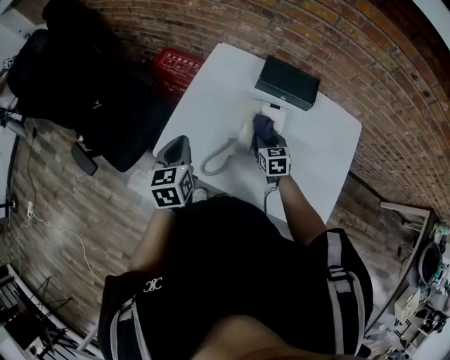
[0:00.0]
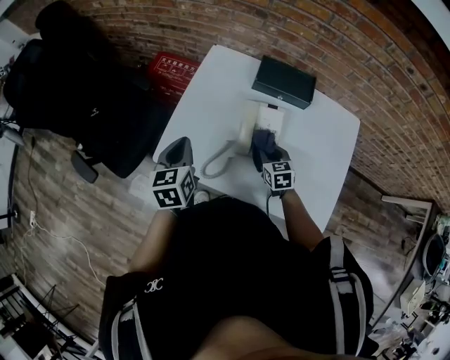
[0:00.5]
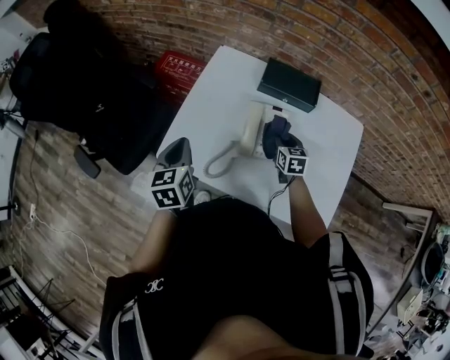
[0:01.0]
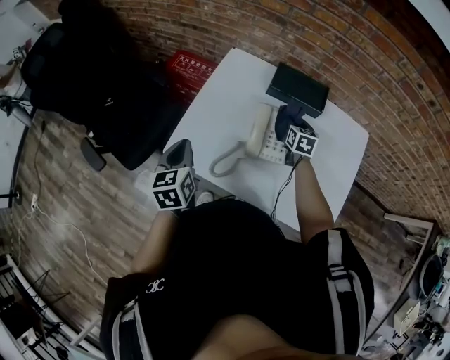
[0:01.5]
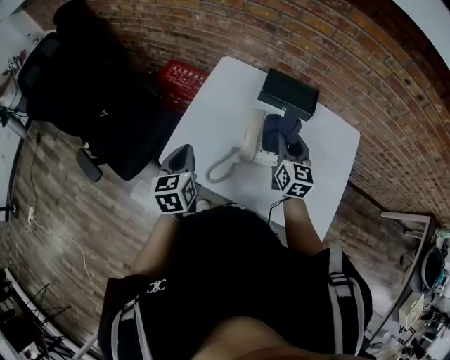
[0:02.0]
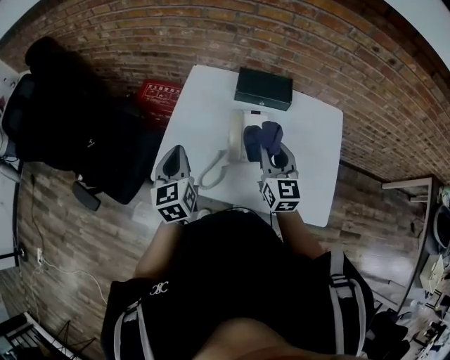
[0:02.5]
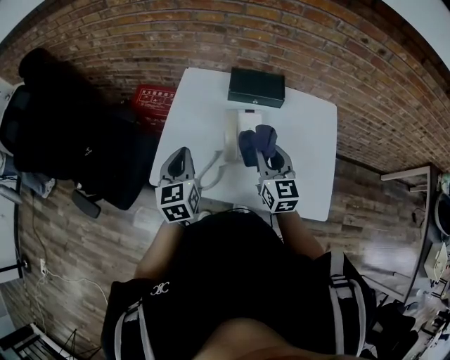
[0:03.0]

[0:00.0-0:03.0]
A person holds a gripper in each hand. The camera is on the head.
0.0 to 1.5 s: The right gripper is displaced to the right and forward by approximately 10 cm.
1.5 to 3.0 s: The right gripper goes roughly 25 cm backward and upward, and rotates about 30 degrees. The left gripper is displaced to the right by approximately 5 cm.

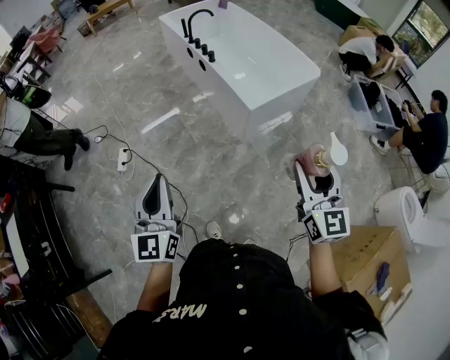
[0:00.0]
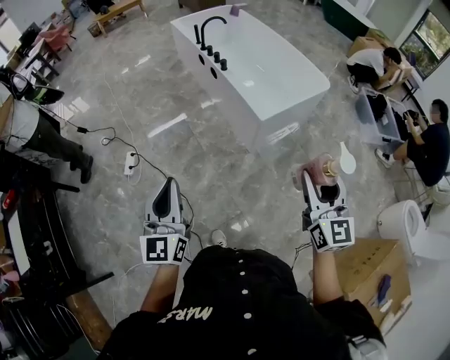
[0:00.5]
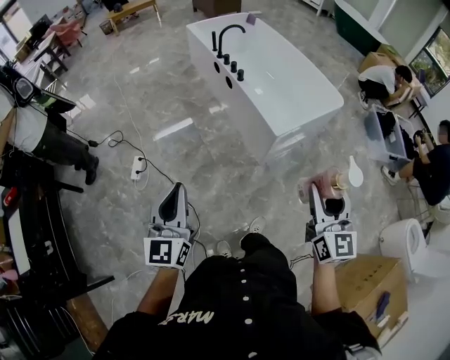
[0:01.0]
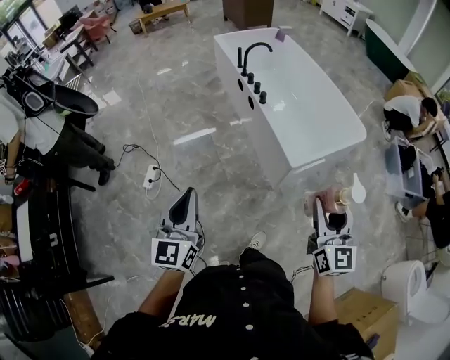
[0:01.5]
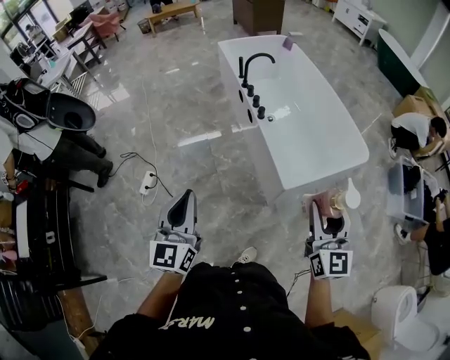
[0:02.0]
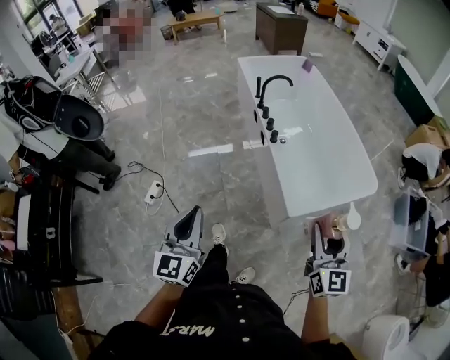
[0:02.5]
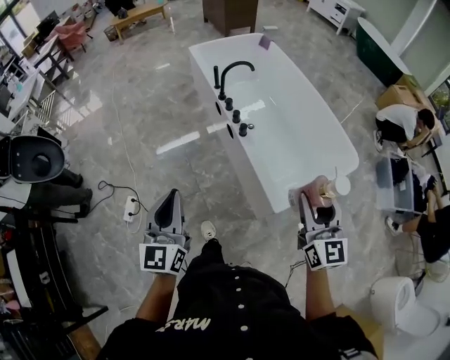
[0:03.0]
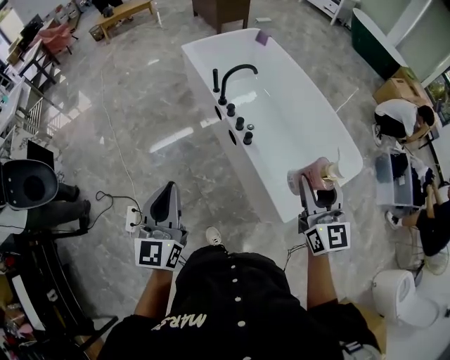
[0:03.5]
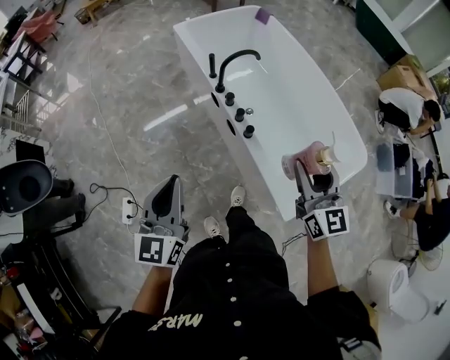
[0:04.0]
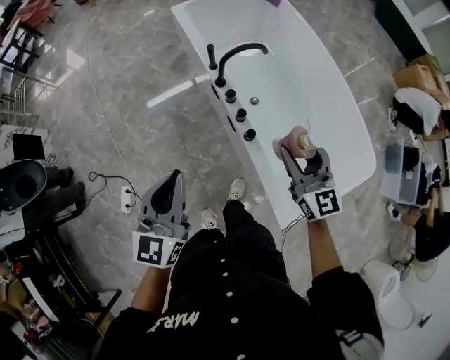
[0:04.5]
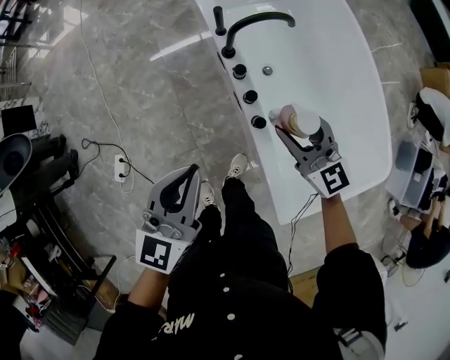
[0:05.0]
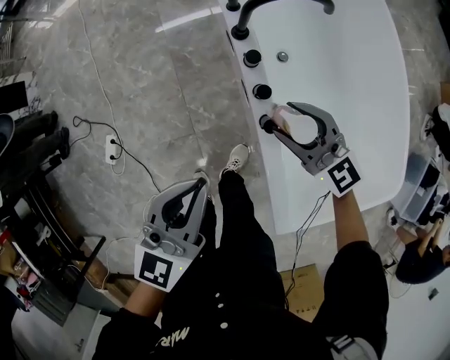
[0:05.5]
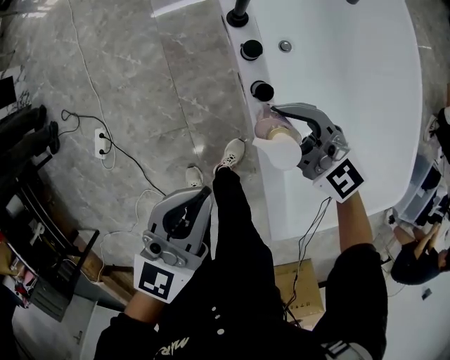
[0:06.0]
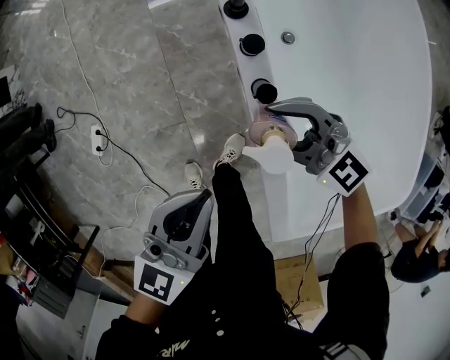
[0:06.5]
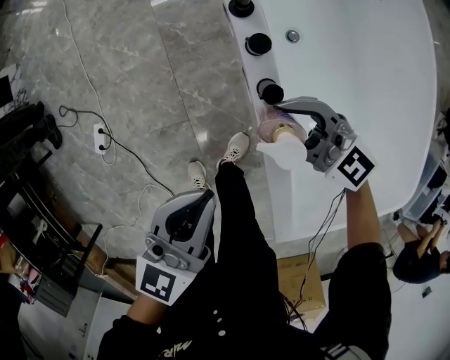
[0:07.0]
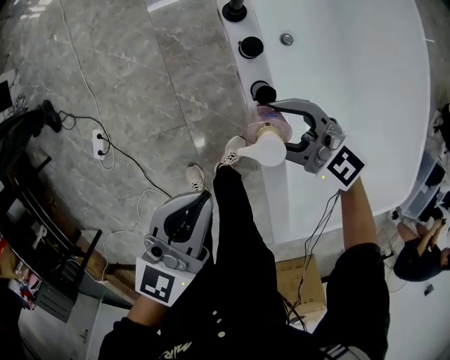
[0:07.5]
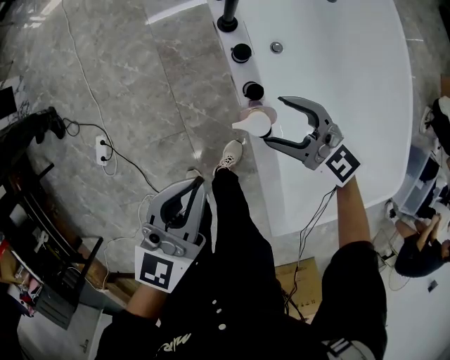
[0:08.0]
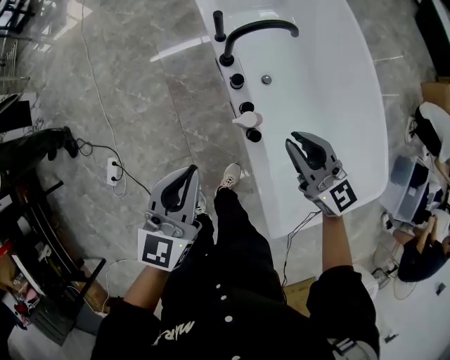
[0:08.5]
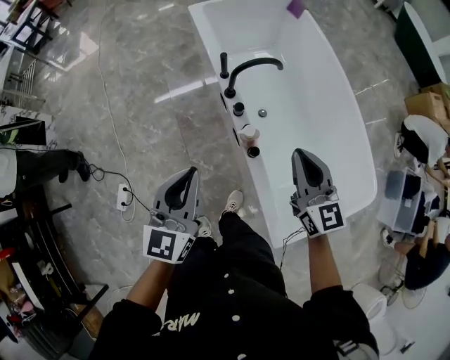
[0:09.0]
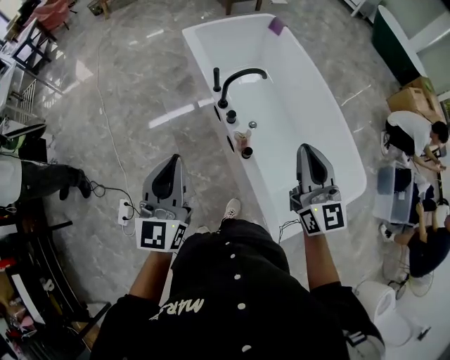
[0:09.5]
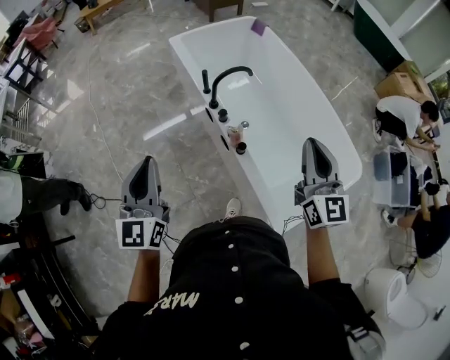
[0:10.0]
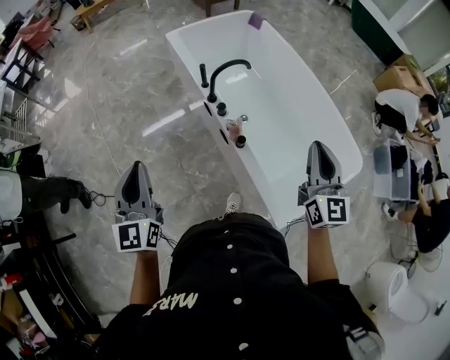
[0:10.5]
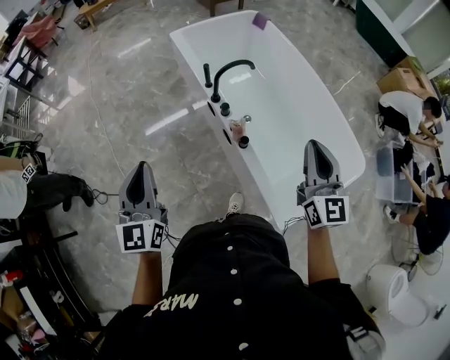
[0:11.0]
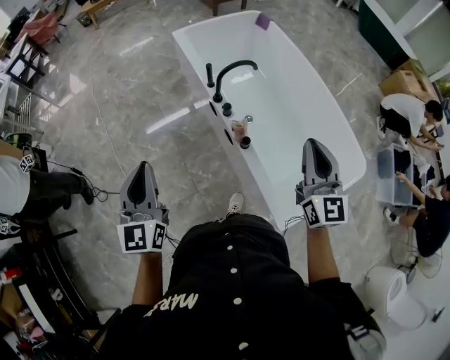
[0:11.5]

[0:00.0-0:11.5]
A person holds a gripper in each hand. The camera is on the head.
0.0 to 2.0 s: The two grippers go some 25 cm forward.
2.0 to 4.0 s: Both grippers travel together forward, some 40 cm.
4.0 to 6.0 s: The left gripper moves about 30 cm, while the right gripper heads downward, covering some 30 cm, and turns by some 70 degrees.
6.0 to 7.5 s: The right gripper heads downward, covering roughly 5 cm.
7.5 to 9.5 s: Both grippers travel together upward, roughly 35 cm. The left gripper changes its angle by approximately 30 degrees. The right gripper changes its angle by about 70 degrees, and closes.
9.5 to 11.5 s: The left gripper goes roughly 5 cm to the left.

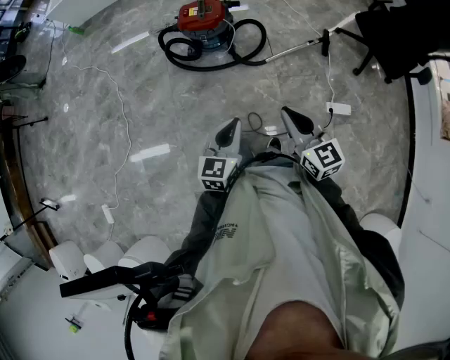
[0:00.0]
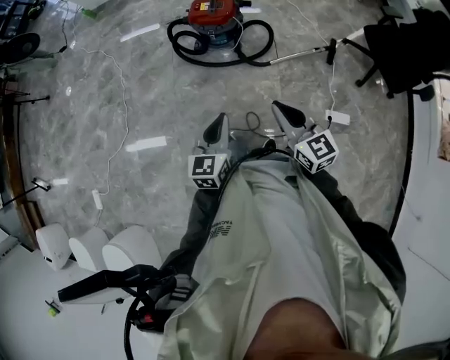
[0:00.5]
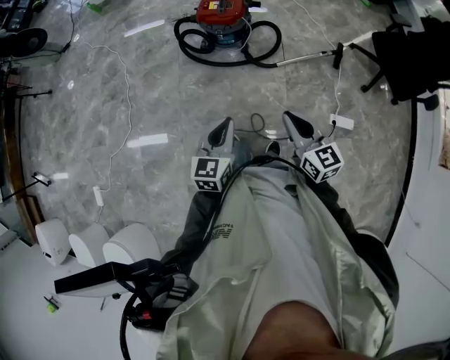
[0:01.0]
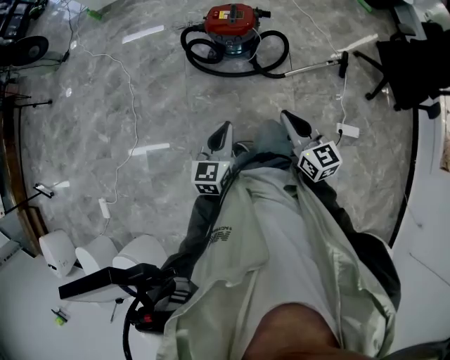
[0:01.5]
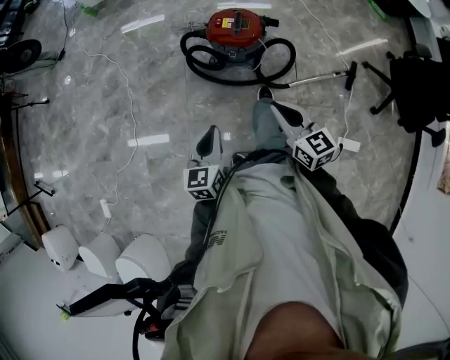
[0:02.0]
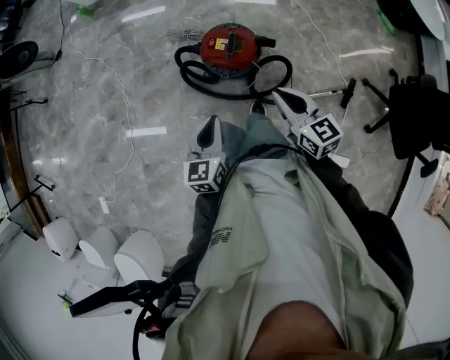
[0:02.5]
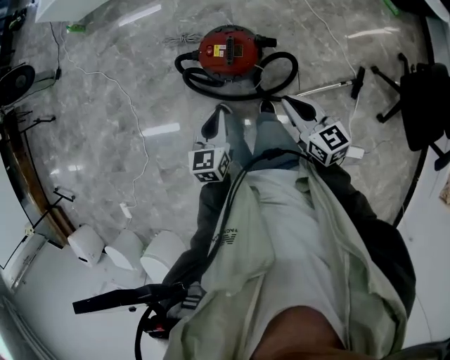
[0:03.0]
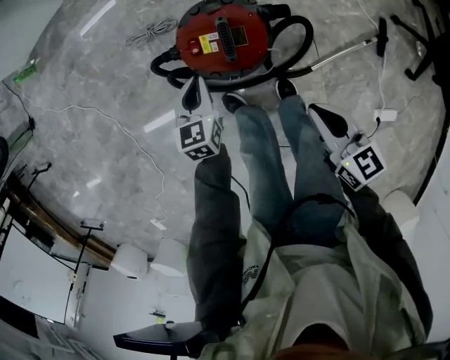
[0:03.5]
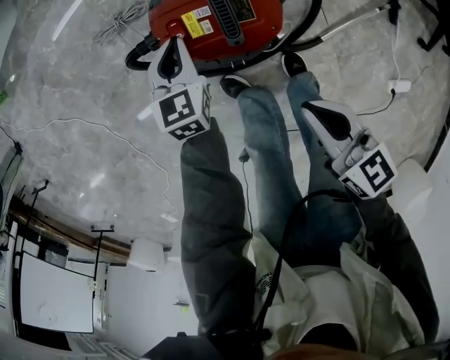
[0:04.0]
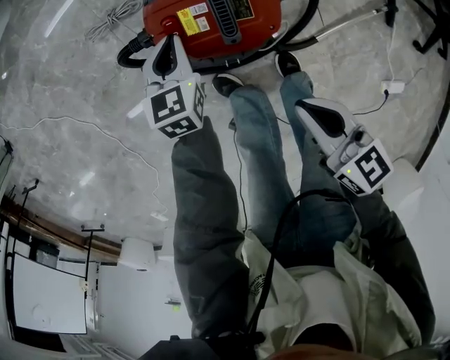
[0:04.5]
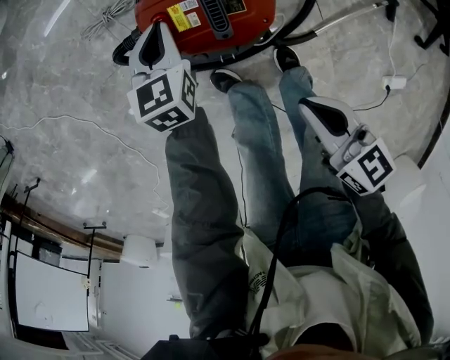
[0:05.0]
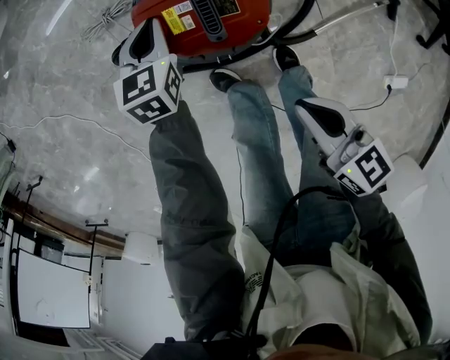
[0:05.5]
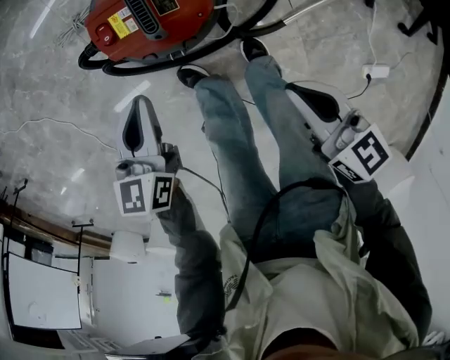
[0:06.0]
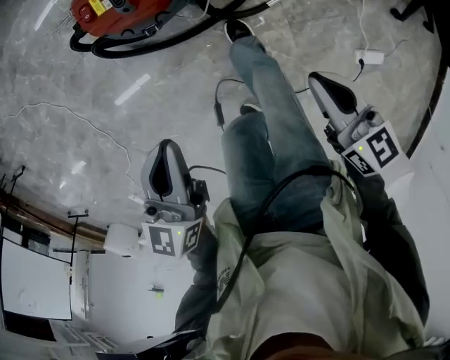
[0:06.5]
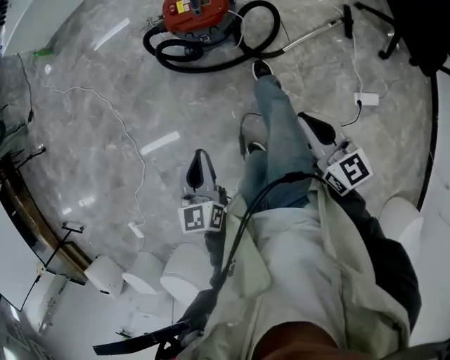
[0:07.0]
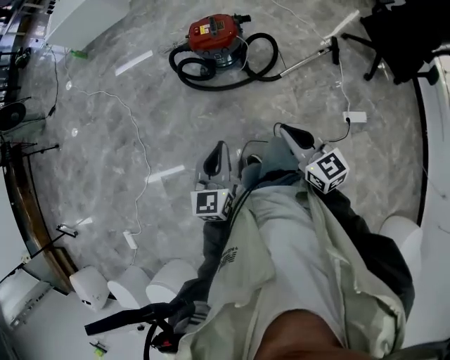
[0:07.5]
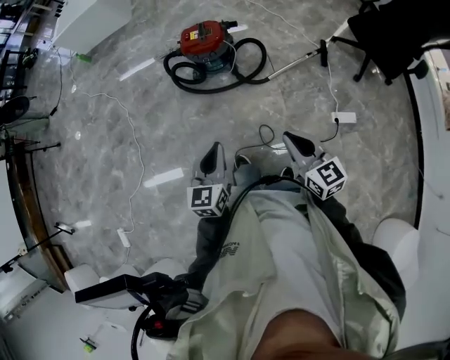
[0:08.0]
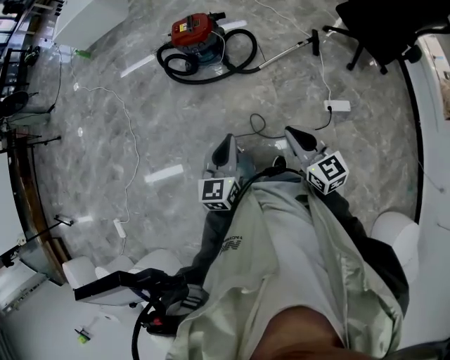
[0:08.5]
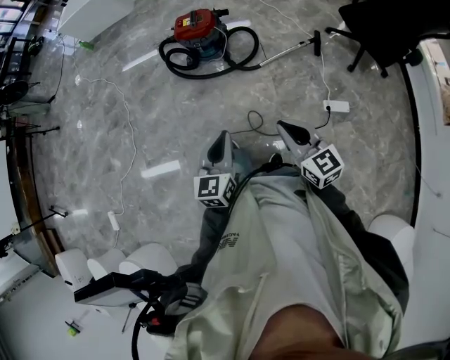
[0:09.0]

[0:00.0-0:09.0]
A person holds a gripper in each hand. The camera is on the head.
0.0 to 2.0 s: The right gripper is displaced forward by approximately 25 cm. The left gripper heads forward and to the left, covering approximately 25 cm, and turns by approximately 20 degrees.
2.0 to 4.5 s: The left gripper is displaced forward and downward by approximately 60 cm, and changes its angle by about 30 degrees; the right gripper goes roughly 40 cm downward and forward, and turns by roughly 30 degrees.
4.5 to 7.0 s: The left gripper shifts some 60 cm backward and upward, and changes its angle by approximately 20 degrees. The right gripper heads backward and upward, covering roughly 40 cm.
7.0 to 9.0 s: The right gripper goes roughly 35 cm backward and upward. The left gripper heads backward, to the right and upward, covering roughly 40 cm.

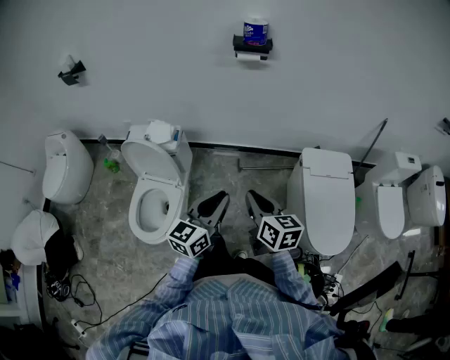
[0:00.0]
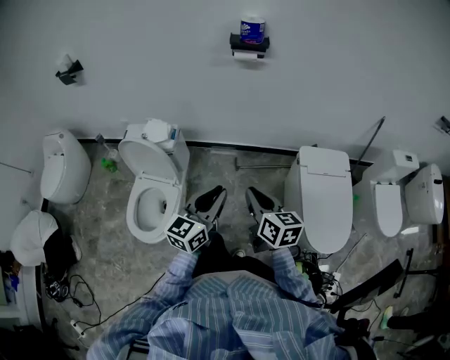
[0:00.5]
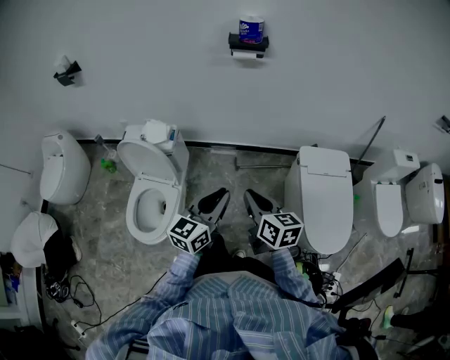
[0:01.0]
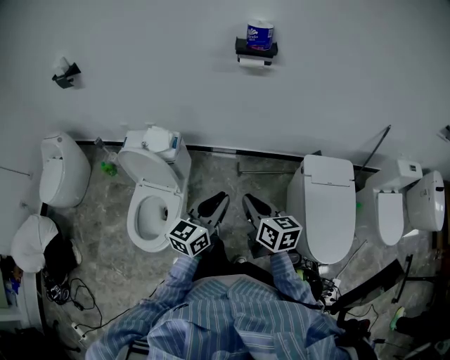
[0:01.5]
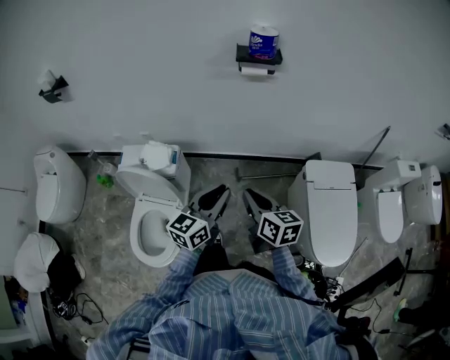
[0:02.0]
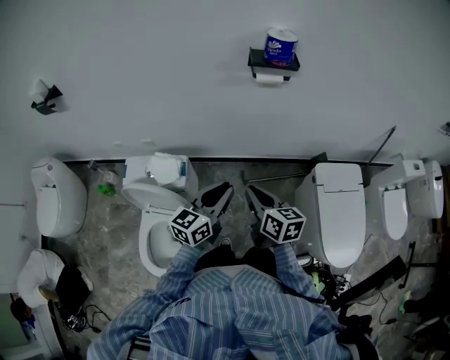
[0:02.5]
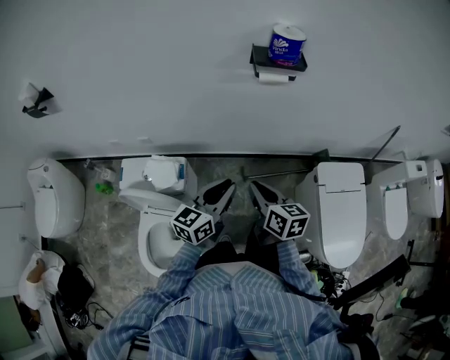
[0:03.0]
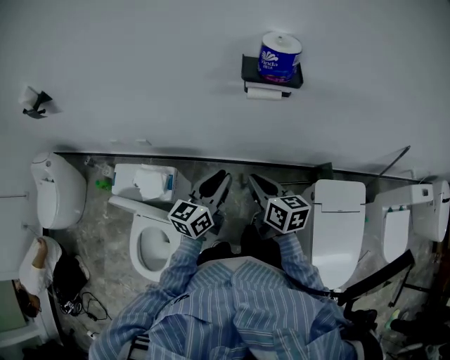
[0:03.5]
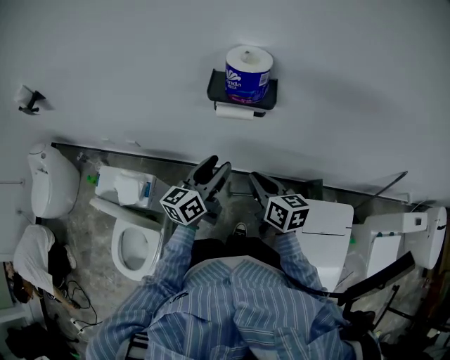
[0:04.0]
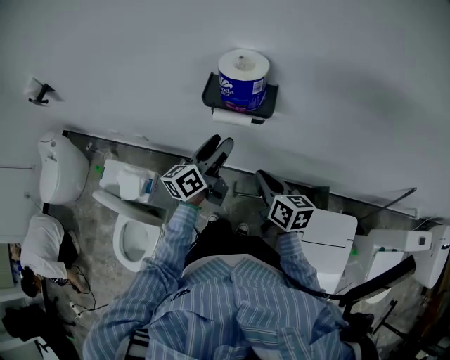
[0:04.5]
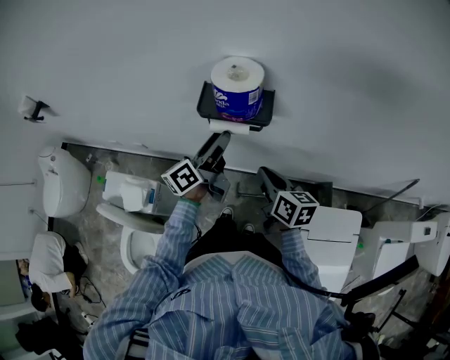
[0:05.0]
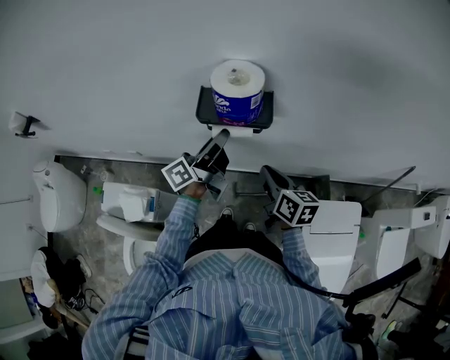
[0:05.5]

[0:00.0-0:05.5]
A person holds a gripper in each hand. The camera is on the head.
0.0 to 2.0 s: The right gripper is displaced forward and to the left by about 15 cm; the left gripper travels forward by approximately 15 cm.
2.0 to 3.5 s: Both grippers travel together forward, about 25 cm.
3.5 to 5.5 s: The grippers both shift forward and to the right by some 25 cm. The left gripper rotates approximately 40 degrees, and opens its fingers.
